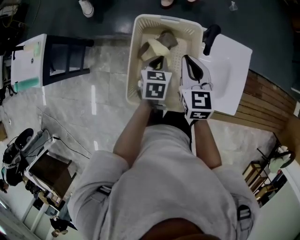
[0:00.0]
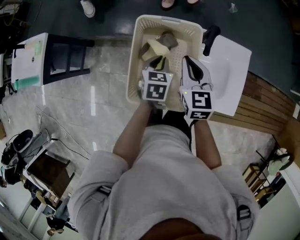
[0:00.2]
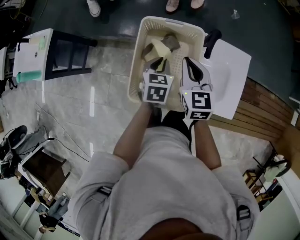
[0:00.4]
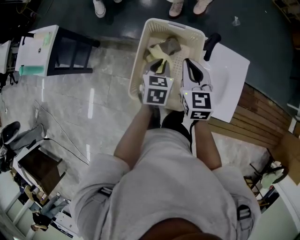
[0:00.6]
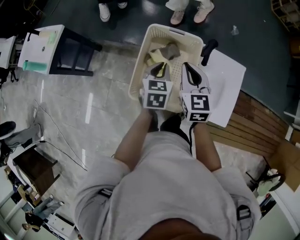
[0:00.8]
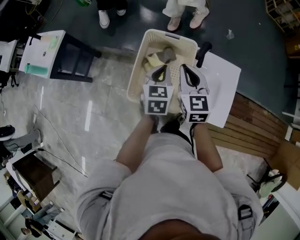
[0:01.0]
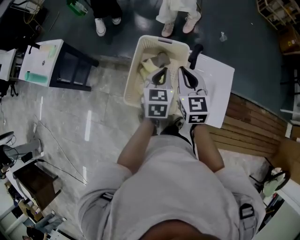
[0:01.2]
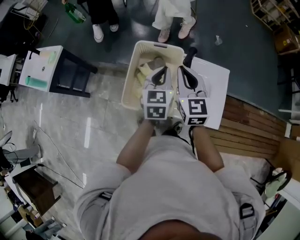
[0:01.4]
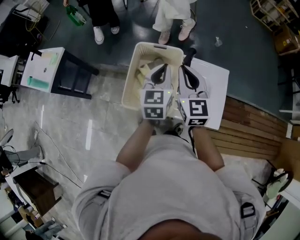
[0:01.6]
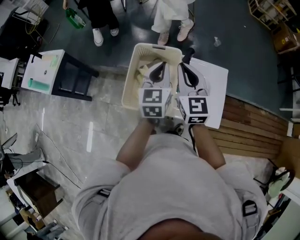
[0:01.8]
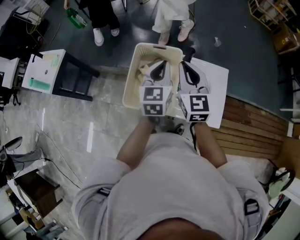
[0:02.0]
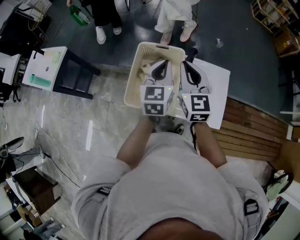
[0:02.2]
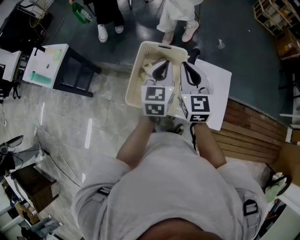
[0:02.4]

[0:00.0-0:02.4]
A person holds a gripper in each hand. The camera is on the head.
0:00.0 to 0:01.2: The right gripper moves upward, about 10 cm; the left gripper is displaced upward by about 15 cm, and rotates approximately 20 degrees.
0:01.2 to 0:02.4: The two grippers go roughly 5 cm upward.

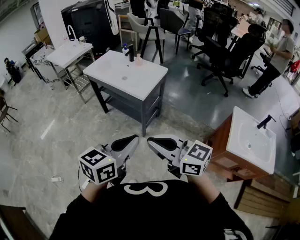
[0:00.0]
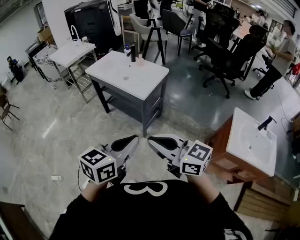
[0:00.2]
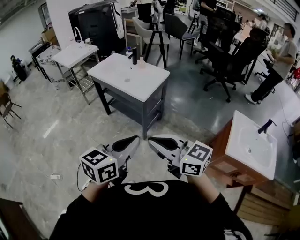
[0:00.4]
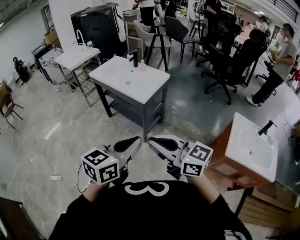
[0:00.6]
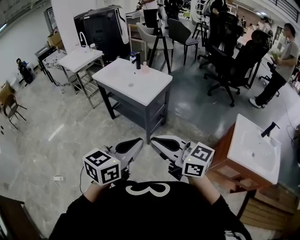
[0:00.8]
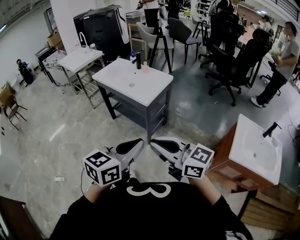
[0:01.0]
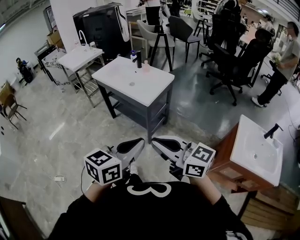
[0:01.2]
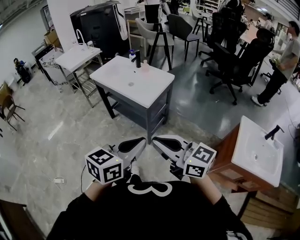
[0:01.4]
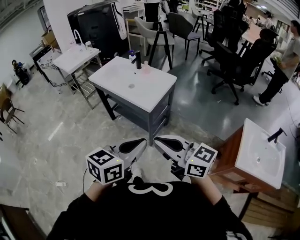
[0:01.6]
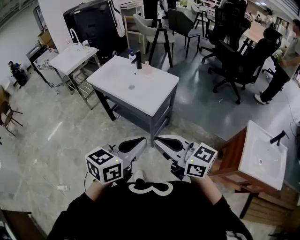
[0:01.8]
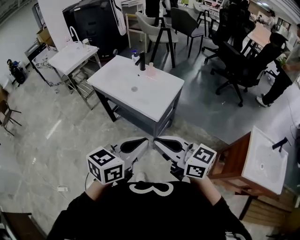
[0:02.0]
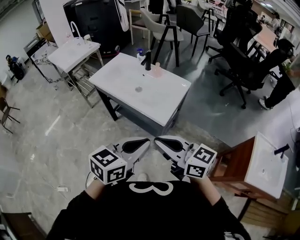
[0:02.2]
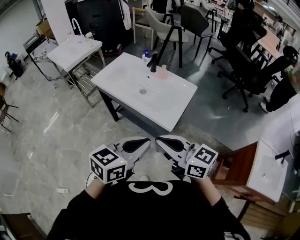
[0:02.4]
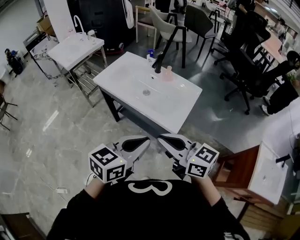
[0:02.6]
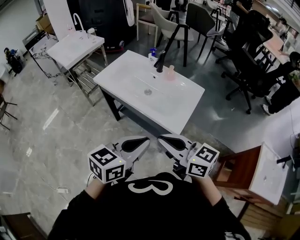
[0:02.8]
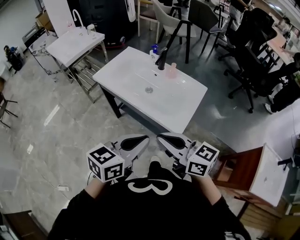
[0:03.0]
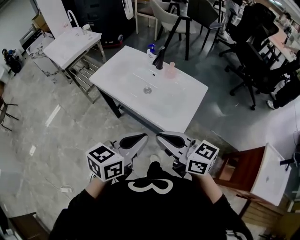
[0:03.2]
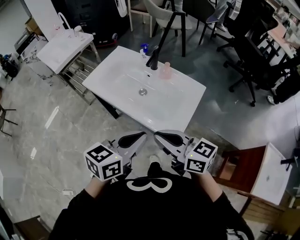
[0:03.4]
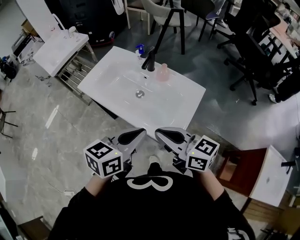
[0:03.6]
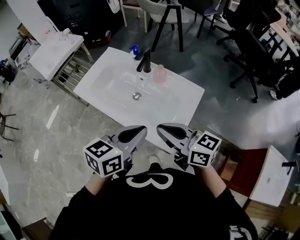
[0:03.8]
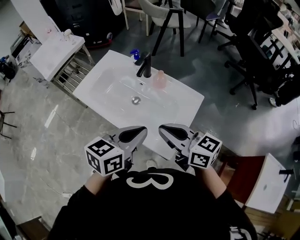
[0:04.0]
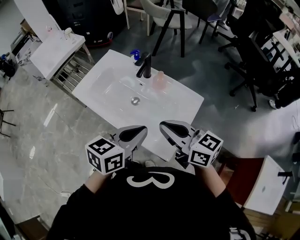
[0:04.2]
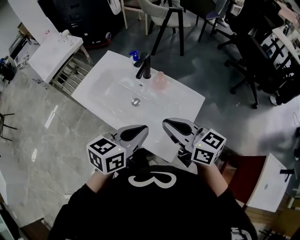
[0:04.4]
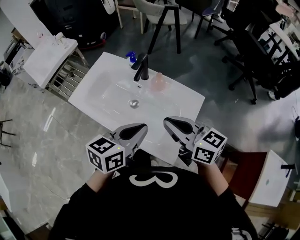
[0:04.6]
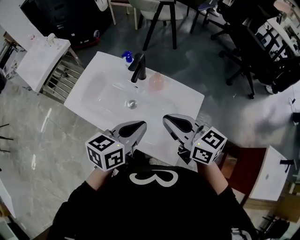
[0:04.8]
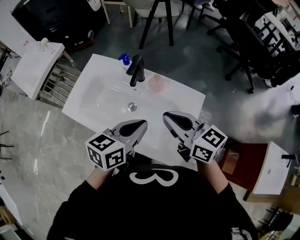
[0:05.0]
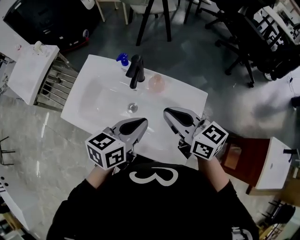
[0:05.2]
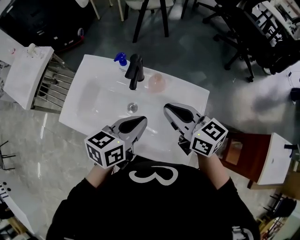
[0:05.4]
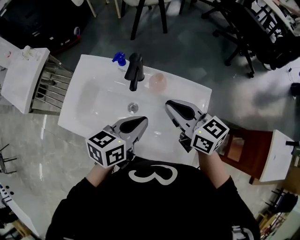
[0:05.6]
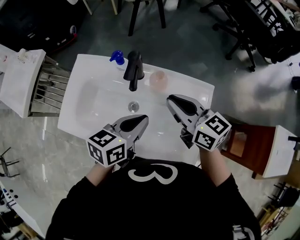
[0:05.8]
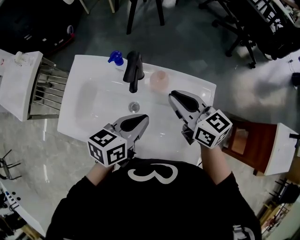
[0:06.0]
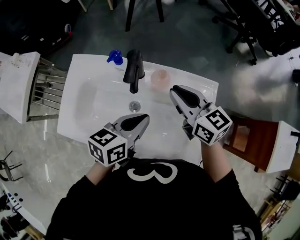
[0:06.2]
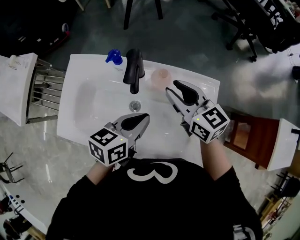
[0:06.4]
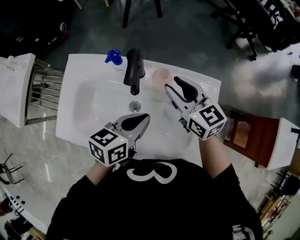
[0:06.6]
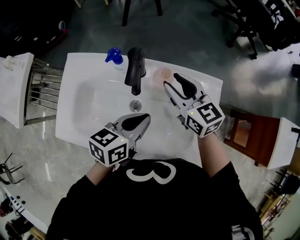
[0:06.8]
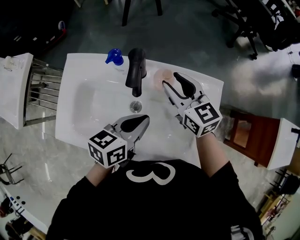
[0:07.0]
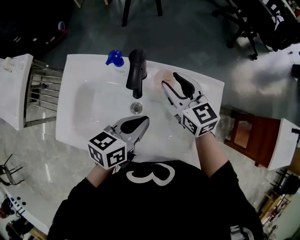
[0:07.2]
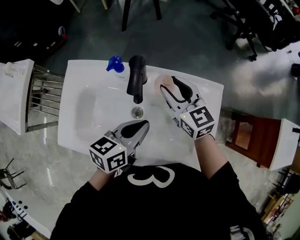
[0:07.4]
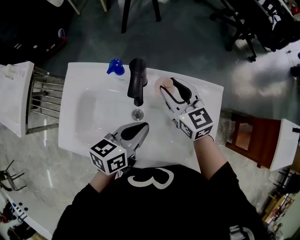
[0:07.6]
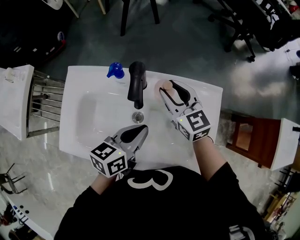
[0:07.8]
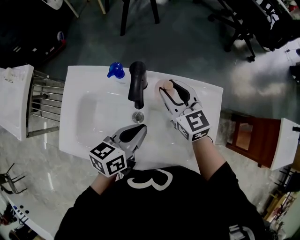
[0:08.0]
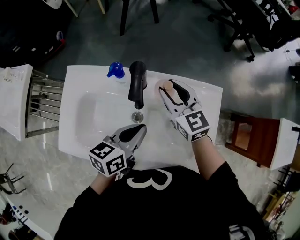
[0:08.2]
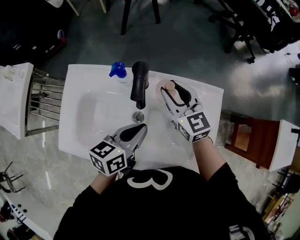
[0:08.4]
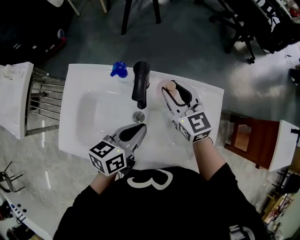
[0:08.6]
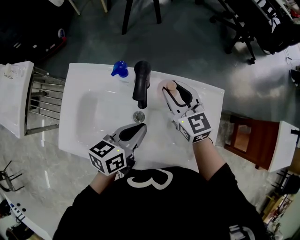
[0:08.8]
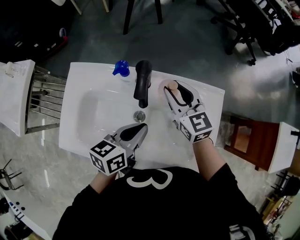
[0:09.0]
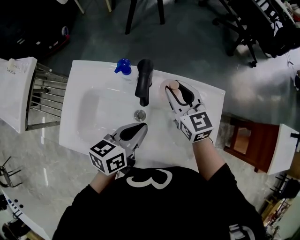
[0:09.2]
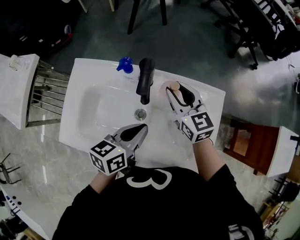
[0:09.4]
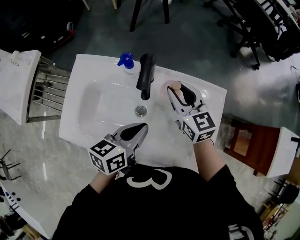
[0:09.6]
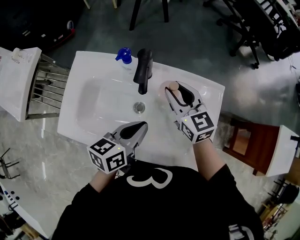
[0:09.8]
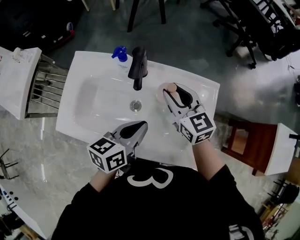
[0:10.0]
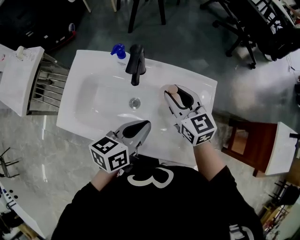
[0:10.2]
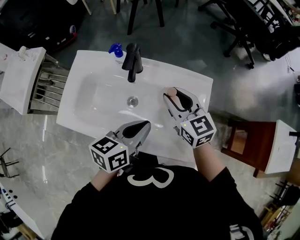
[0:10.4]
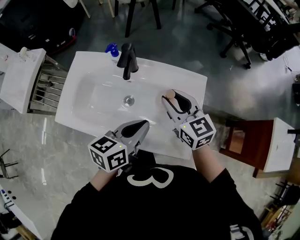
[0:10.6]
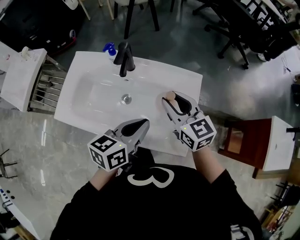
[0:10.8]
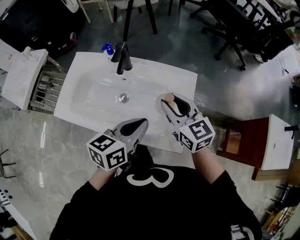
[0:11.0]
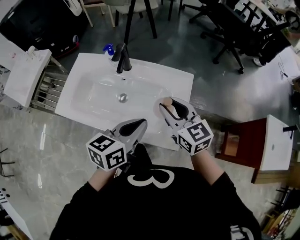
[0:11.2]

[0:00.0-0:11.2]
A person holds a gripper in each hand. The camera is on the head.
0:00.0 to 0:01.6: The grippers both shift forward by some 10 cm.
0:01.6 to 0:03.2: The two grippers go approximately 35 cm forward and to the left.
0:03.2 to 0:04.8: Both grippers travel together forward, roughly 25 cm.
0:04.8 to 0:06.4: Both grippers move forward and downward, approximately 15 cm. The right gripper rotates approximately 20 degrees, and opens its fingers.
0:06.4 to 0:08.0: The right gripper ends up about 5 cm from where it was.
0:08.0 to 0:09.6: The grippers move only a little.
0:09.6 to 0:11.2: The right gripper goes about 20 cm backward, to the right and upward. The left gripper heads to the right, backward and upward, covering some 20 cm.

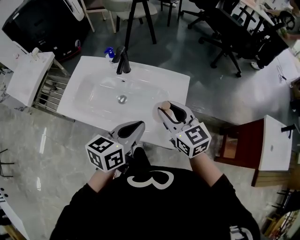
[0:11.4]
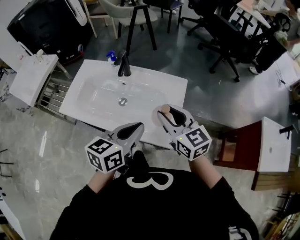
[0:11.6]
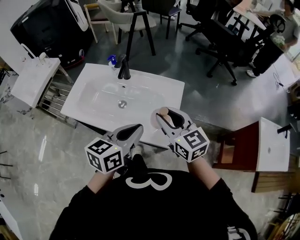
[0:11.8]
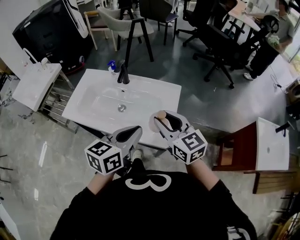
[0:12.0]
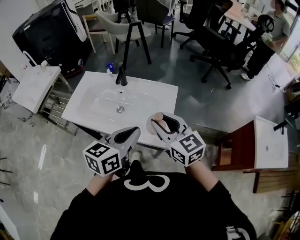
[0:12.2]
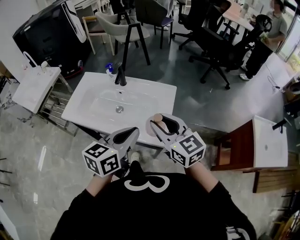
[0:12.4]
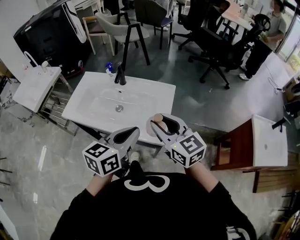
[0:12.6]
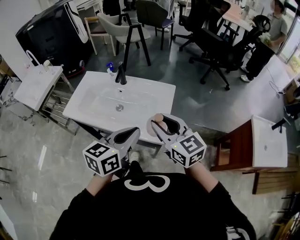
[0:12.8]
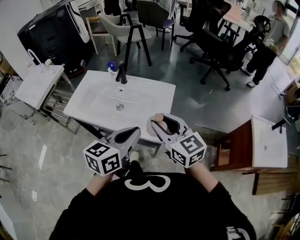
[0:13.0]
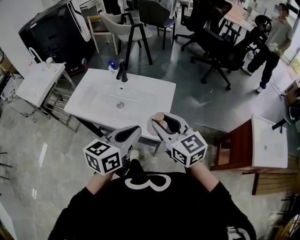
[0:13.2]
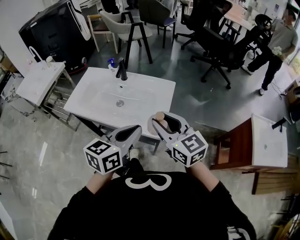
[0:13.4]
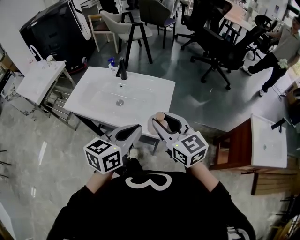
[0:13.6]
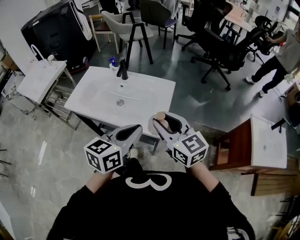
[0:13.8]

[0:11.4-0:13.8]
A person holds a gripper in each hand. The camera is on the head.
0:11.4 to 0:12.6: The grippers both shift backward and upward by about 10 cm.
0:12.6 to 0:13.8: The left gripper changes place by approximately 5 cm.

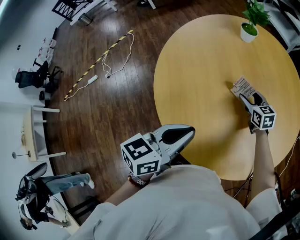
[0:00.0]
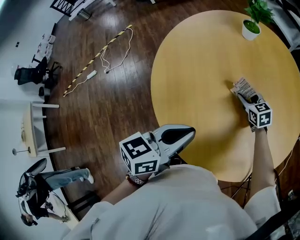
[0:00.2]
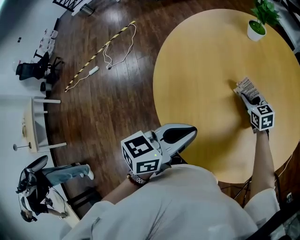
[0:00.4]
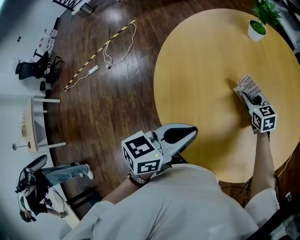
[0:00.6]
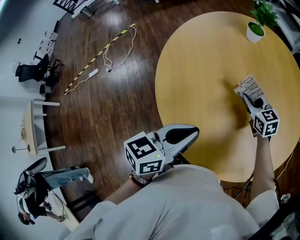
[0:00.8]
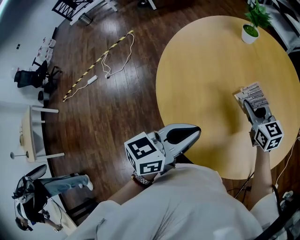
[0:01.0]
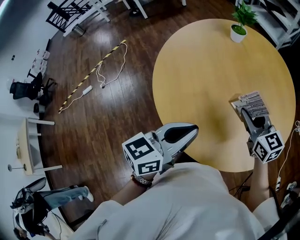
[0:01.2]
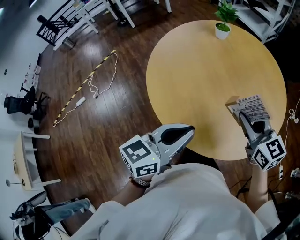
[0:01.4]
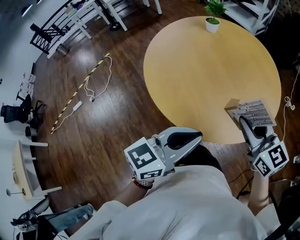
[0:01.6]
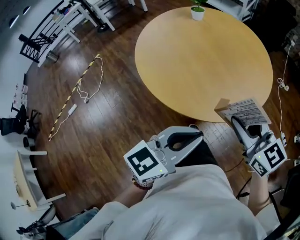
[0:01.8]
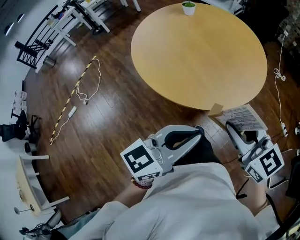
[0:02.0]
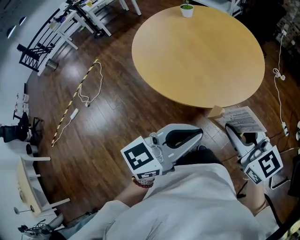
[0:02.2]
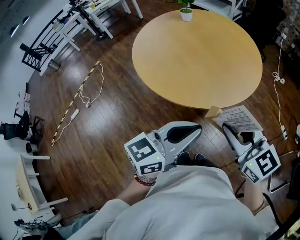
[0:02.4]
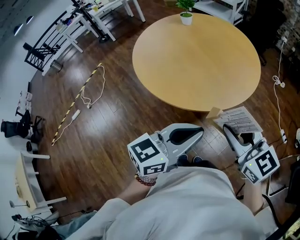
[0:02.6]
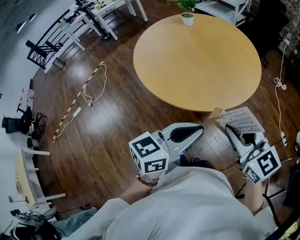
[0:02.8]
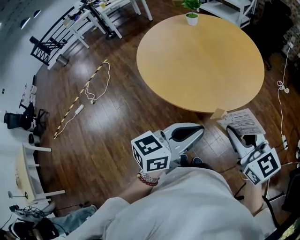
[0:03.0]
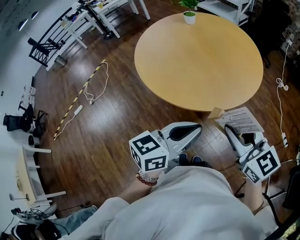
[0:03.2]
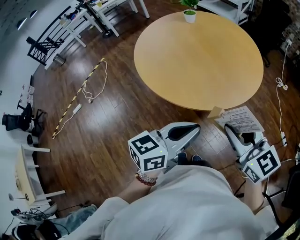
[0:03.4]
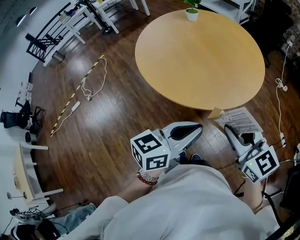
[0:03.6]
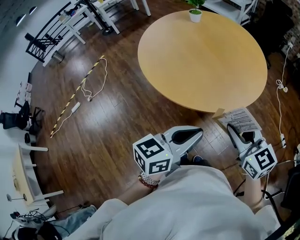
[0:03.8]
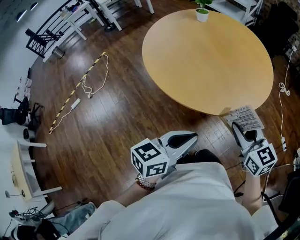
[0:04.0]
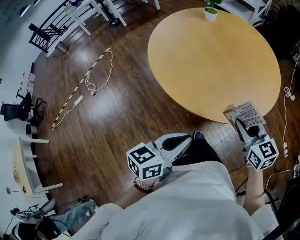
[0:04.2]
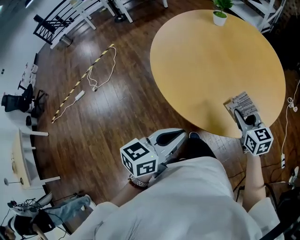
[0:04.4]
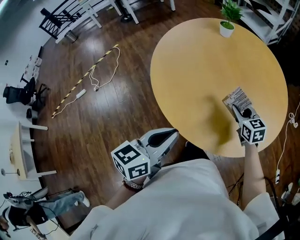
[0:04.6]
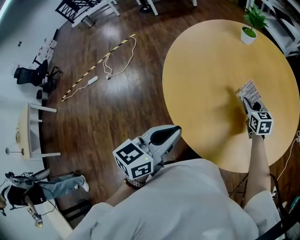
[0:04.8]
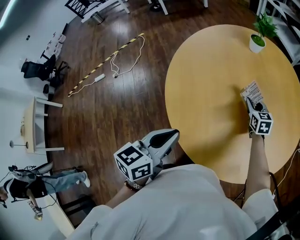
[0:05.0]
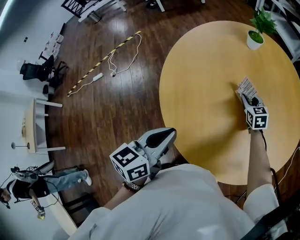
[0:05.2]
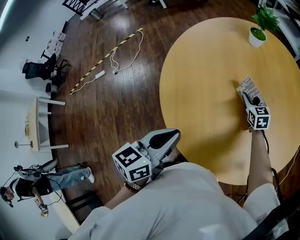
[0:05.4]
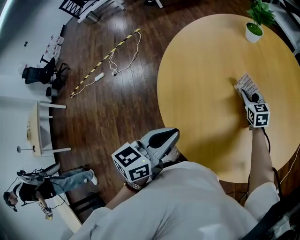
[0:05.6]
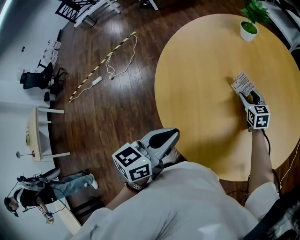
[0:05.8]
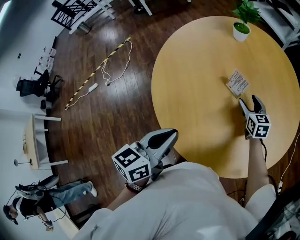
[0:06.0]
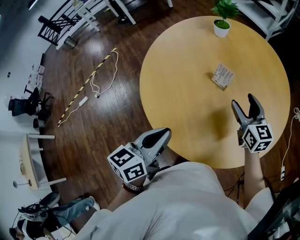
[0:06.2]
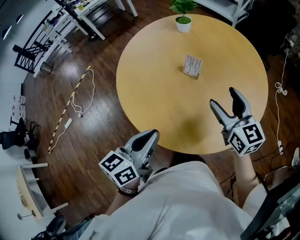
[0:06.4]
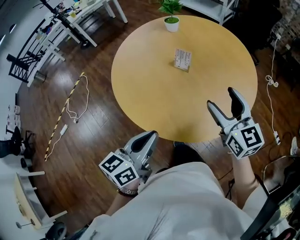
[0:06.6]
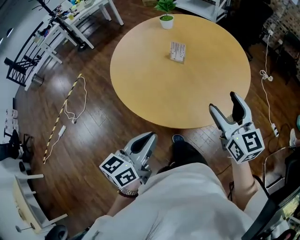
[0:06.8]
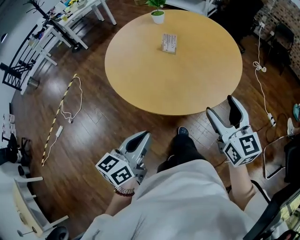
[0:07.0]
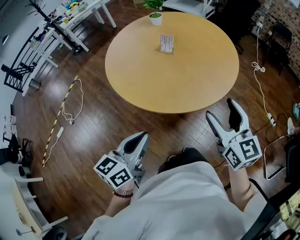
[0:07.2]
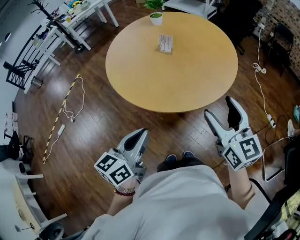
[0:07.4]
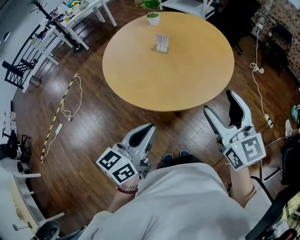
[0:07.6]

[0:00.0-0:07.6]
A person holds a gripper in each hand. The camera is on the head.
0:00.0 to 0:01.6: The left gripper heads backward, covering roughly 15 cm, and changes its angle by some 30 degrees. Meanwhile the right gripper is displaced backward and upward by approximately 40 cm, turns by about 20 degrees, and closes up.
0:01.6 to 0:03.0: Both grippers travel together backward and to the right, some 20 cm.
0:03.0 to 0:04.6: The left gripper shifts some 20 cm to the left and forward, and rotates approximately 20 degrees. Meanwhile the right gripper moves forward and downward, roughly 40 cm, and turns by roughly 20 degrees.
0:04.6 to 0:06.0: The left gripper goes roughly 15 cm forward; the right gripper moves forward and downward, some 20 cm, and opens.
0:06.0 to 0:07.6: The right gripper moves backward and upward, roughly 60 cm, and changes its angle by some 30 degrees. The left gripper moves backward, approximately 30 cm, and swivels approximately 20 degrees.
